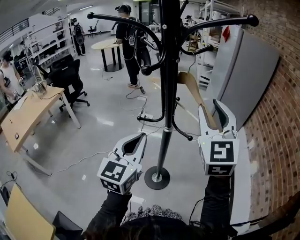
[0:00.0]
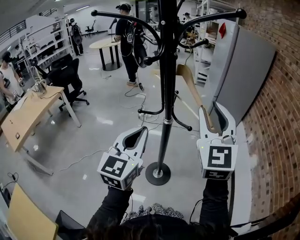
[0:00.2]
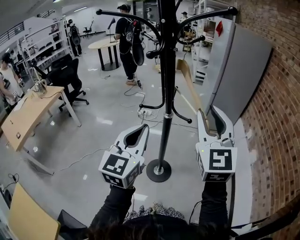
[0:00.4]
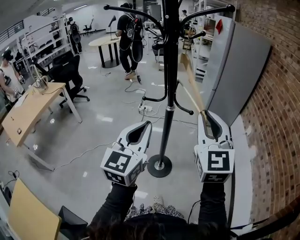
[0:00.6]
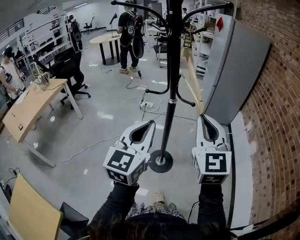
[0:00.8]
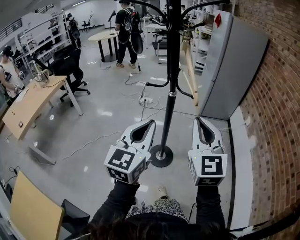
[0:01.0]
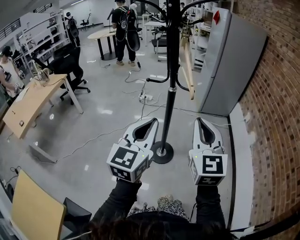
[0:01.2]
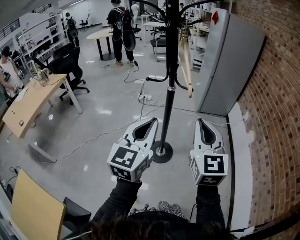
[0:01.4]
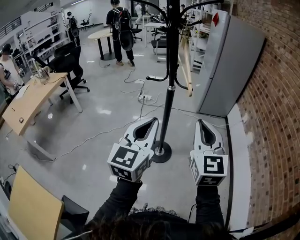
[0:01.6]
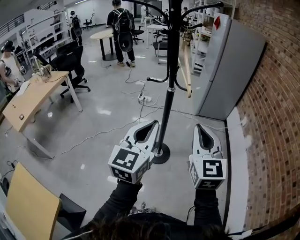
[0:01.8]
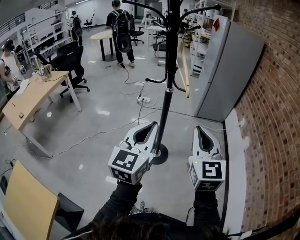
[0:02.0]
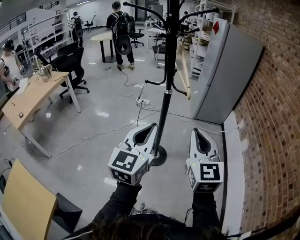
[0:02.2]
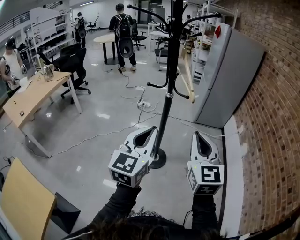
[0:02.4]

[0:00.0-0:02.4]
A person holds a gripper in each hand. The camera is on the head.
0:00.0 to 0:01.2: The right gripper travels backward and downward by about 25 cm, and closes its fingers. Meanwhile the left gripper shifts approximately 15 cm backward.
0:01.2 to 0:02.4: The grippers both shift backward by roughly 5 cm.

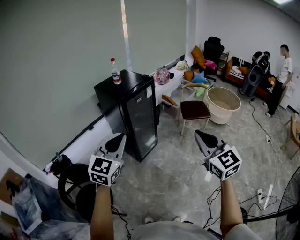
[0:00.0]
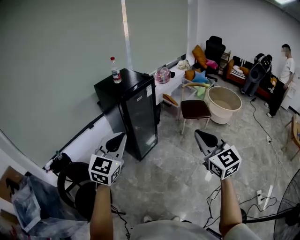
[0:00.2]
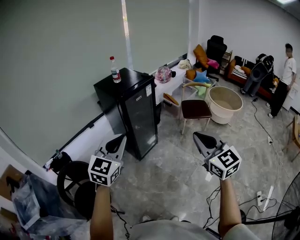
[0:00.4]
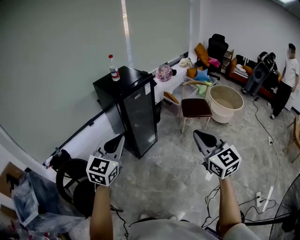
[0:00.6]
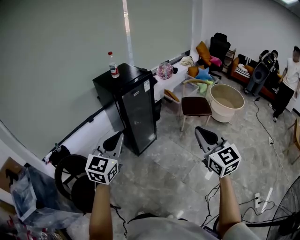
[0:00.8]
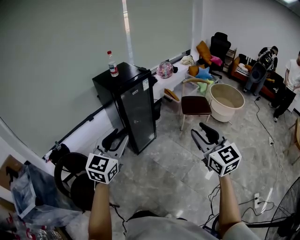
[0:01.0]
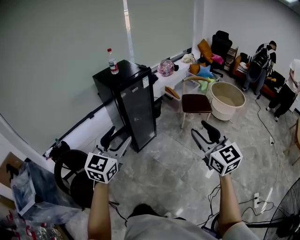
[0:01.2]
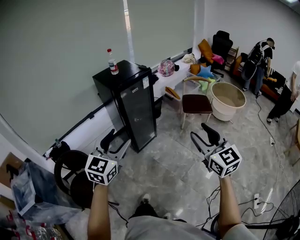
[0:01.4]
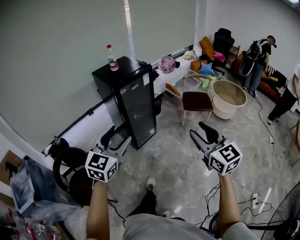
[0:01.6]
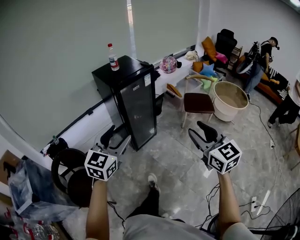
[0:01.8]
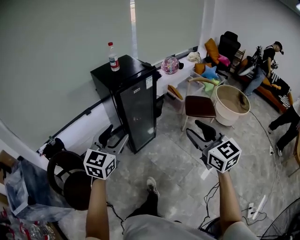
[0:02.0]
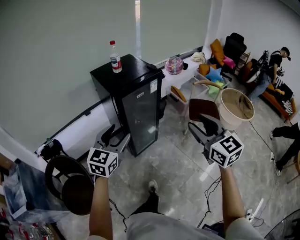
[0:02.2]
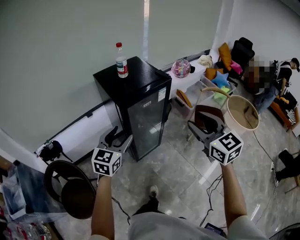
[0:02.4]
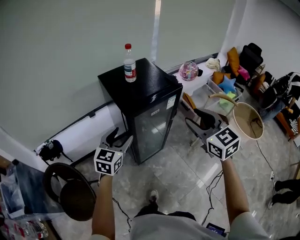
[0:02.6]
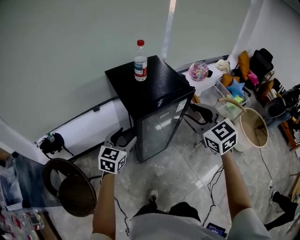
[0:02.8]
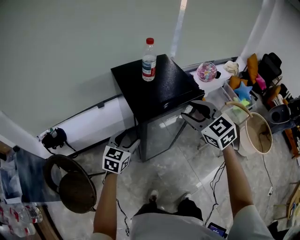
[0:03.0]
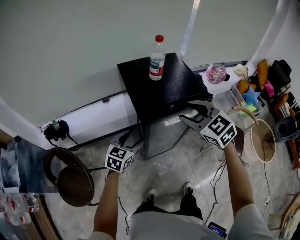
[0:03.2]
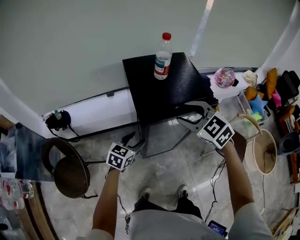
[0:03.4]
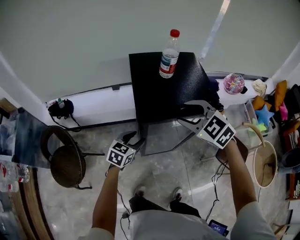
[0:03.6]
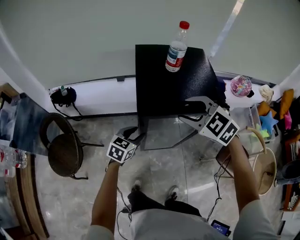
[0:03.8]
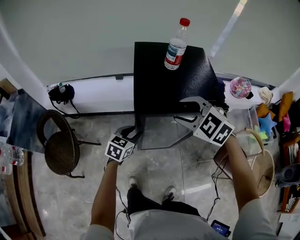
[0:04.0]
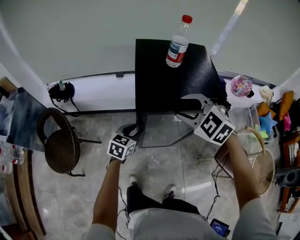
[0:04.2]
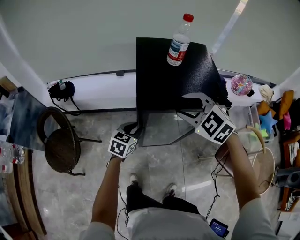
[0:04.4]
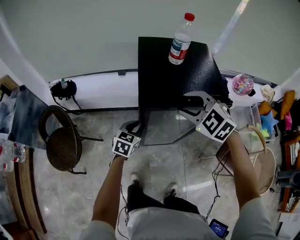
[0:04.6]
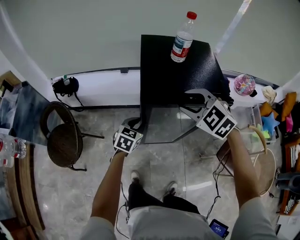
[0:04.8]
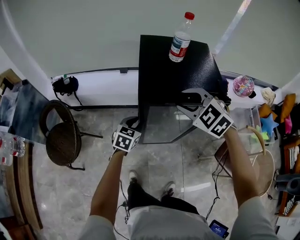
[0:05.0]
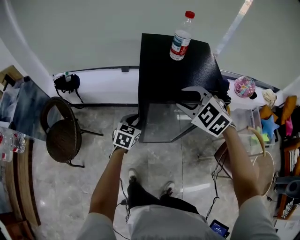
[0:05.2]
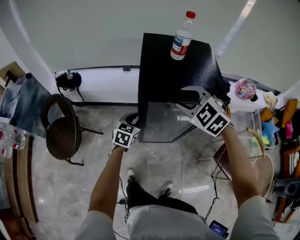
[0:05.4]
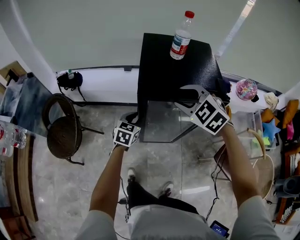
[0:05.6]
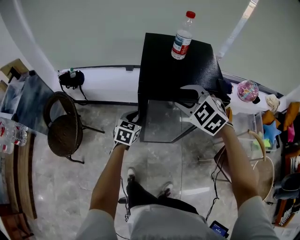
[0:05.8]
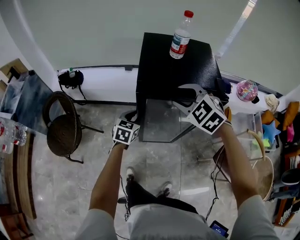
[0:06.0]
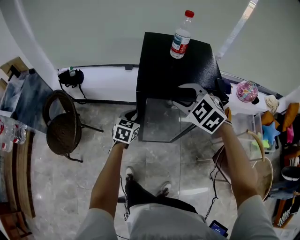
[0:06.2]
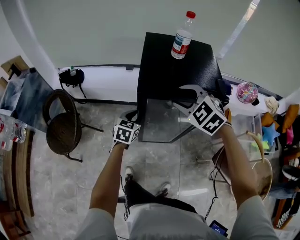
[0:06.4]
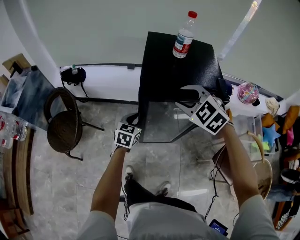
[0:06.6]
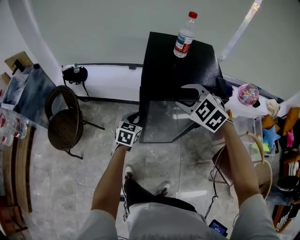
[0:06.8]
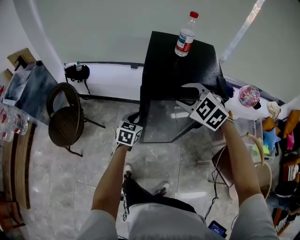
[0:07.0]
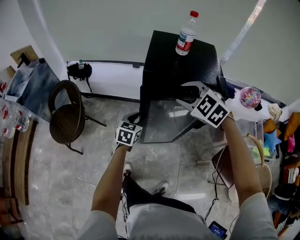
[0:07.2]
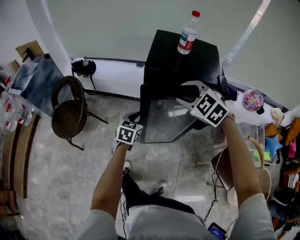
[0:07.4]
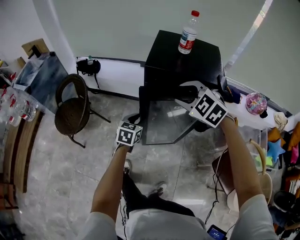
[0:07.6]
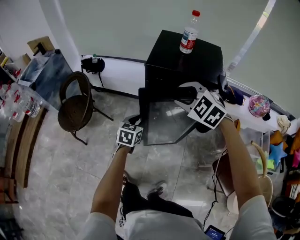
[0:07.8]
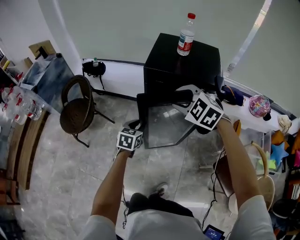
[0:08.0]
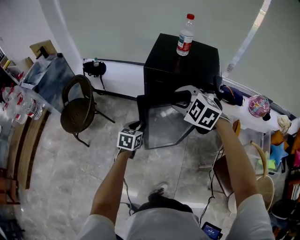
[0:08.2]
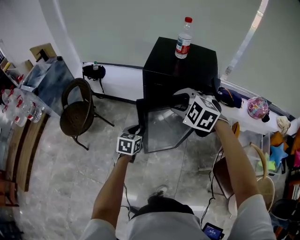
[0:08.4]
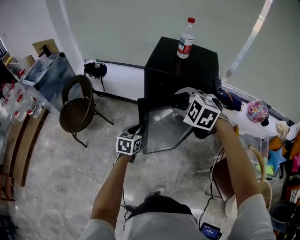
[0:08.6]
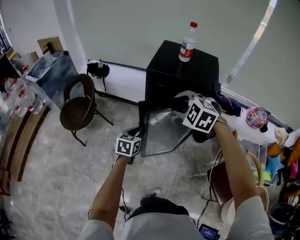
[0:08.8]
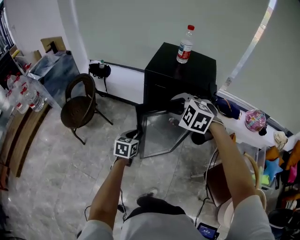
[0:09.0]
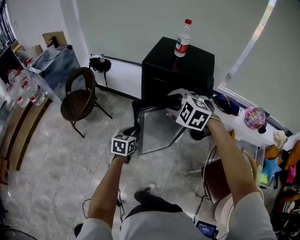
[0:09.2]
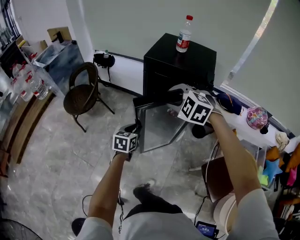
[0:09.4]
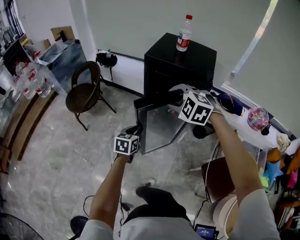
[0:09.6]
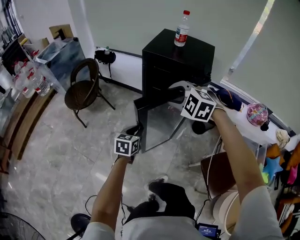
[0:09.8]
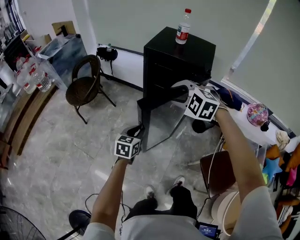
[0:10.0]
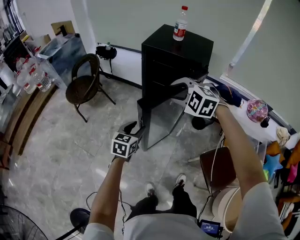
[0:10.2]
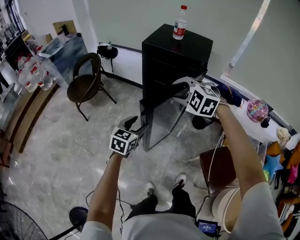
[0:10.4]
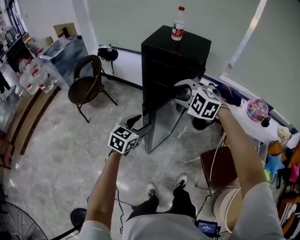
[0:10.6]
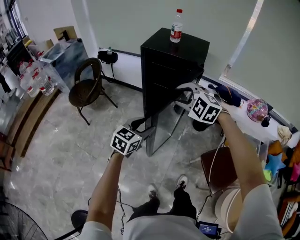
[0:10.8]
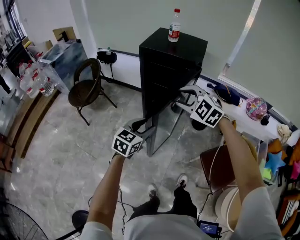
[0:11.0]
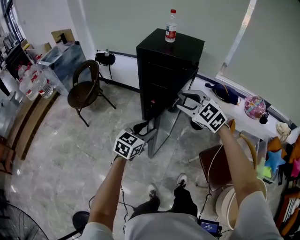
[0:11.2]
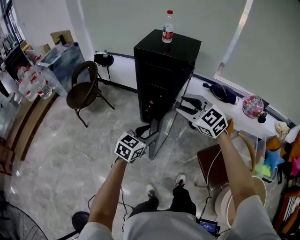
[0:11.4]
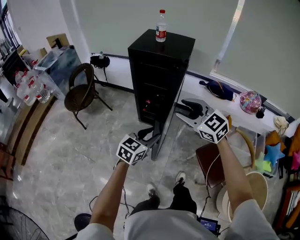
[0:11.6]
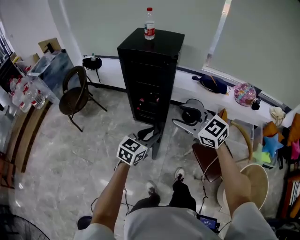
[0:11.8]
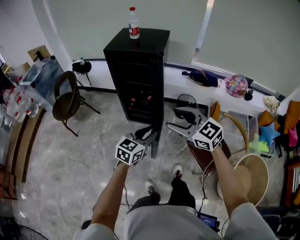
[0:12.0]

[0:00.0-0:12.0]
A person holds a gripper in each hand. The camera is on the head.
0:00.0 to 0:01.6: Both grippers travel together to the right, some 10 cm. The right gripper opens its fingers; the left gripper opens.
0:01.6 to 0:03.0: Both grippers are carried forward, some 50 cm. The left gripper travels downward by approximately 20 cm, and rotates some 30 degrees. The right gripper rotates approximately 40 degrees.
0:03.0 to 0:04.4: The right gripper moves downward and forward, some 10 cm, and swivels roughly 40 degrees. Meanwhile the left gripper moves downward, some 15 cm, rotates some 20 degrees, and closes its fingers.
0:04.4 to 0:06.0: The grippers stay close to where they were, moving slightly.
0:06.0 to 0:07.6: The right gripper heads backward, covering about 5 cm, while the left gripper goes approximately 10 cm backward.
0:07.6 to 0:09.0: Both grippers move backward, approximately 10 cm.
0:09.0 to 0:10.4: Both grippers travel together backward, about 15 cm. The left gripper opens up.
0:10.4 to 0:12.0: The left gripper heads to the right and backward, covering some 20 cm, rotates about 20 degrees, and closes up. Meanwhile the right gripper heads backward and to the right, covering about 25 cm, and rolls clockwise, seen from behind, by roughly 50 degrees.

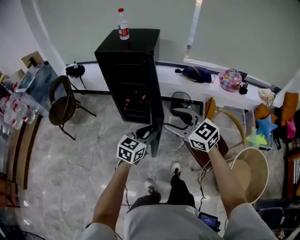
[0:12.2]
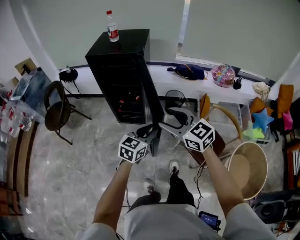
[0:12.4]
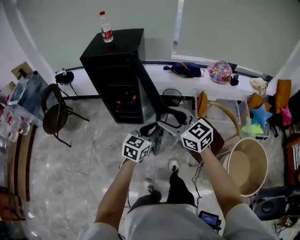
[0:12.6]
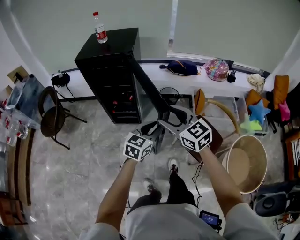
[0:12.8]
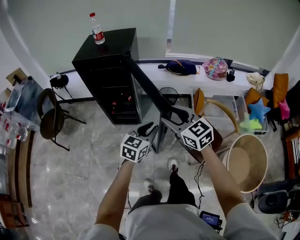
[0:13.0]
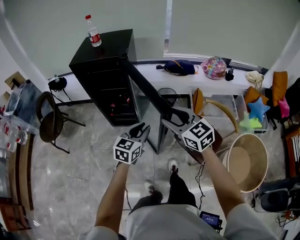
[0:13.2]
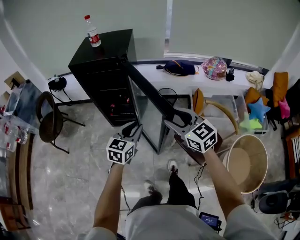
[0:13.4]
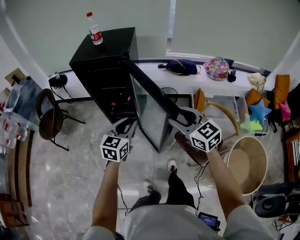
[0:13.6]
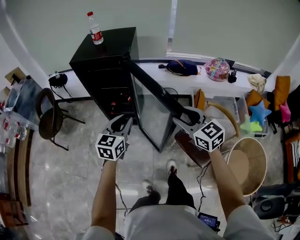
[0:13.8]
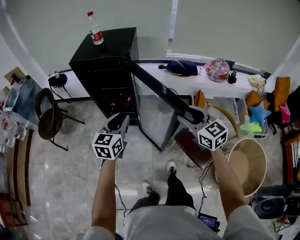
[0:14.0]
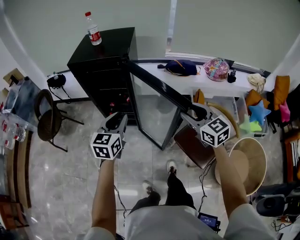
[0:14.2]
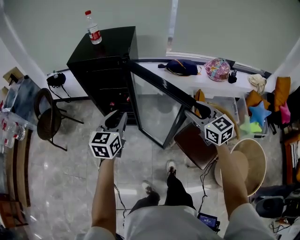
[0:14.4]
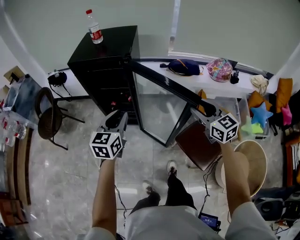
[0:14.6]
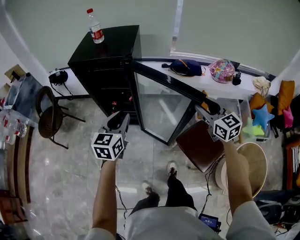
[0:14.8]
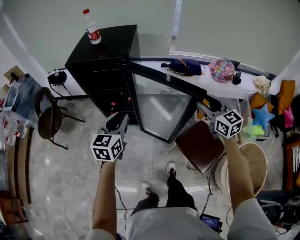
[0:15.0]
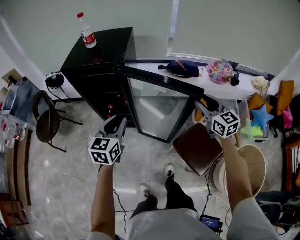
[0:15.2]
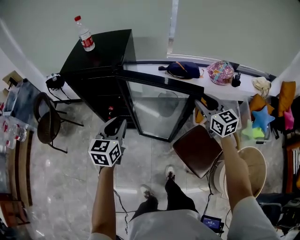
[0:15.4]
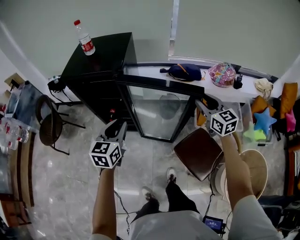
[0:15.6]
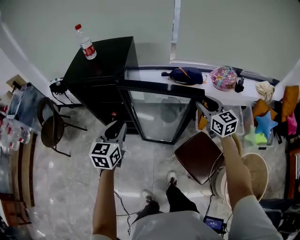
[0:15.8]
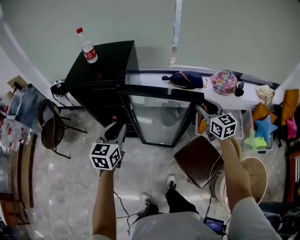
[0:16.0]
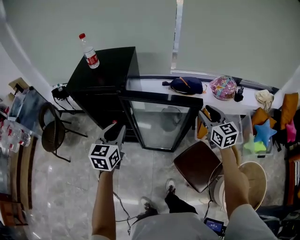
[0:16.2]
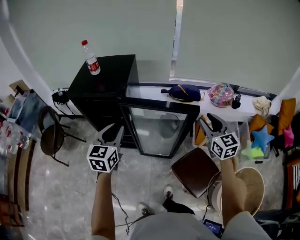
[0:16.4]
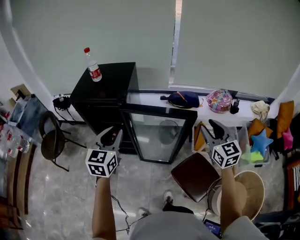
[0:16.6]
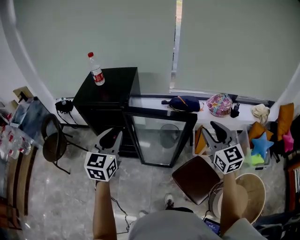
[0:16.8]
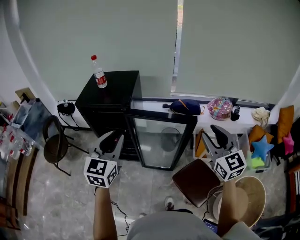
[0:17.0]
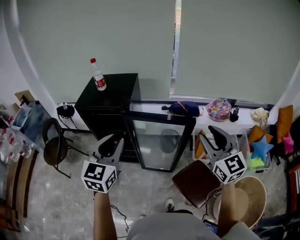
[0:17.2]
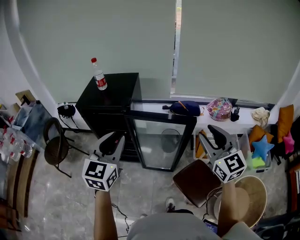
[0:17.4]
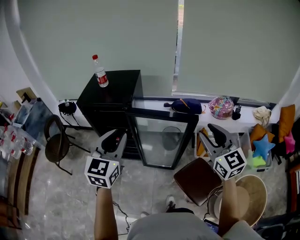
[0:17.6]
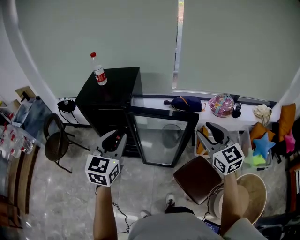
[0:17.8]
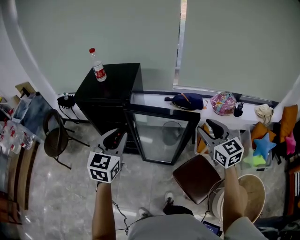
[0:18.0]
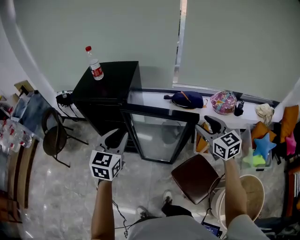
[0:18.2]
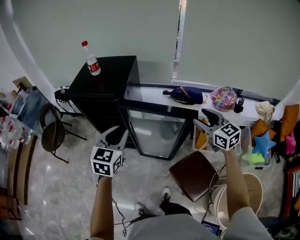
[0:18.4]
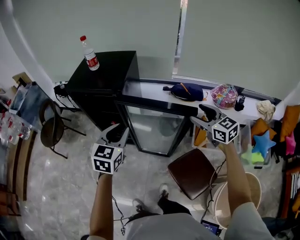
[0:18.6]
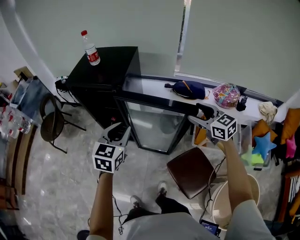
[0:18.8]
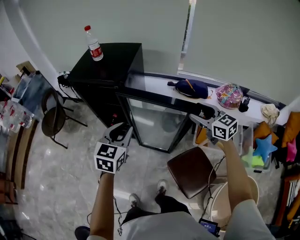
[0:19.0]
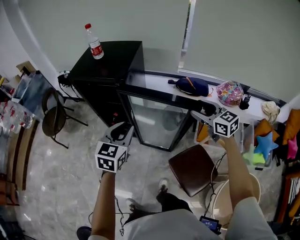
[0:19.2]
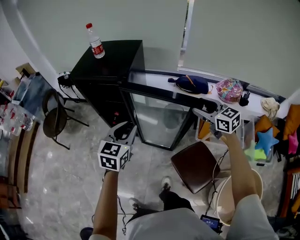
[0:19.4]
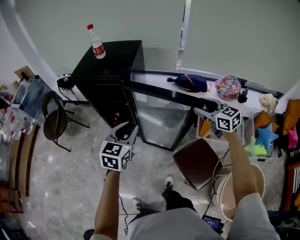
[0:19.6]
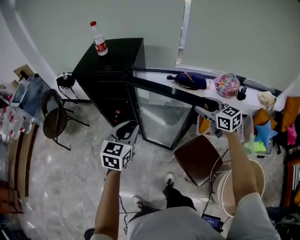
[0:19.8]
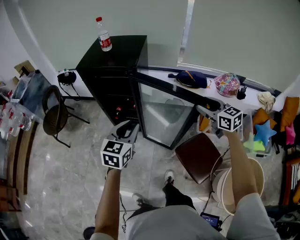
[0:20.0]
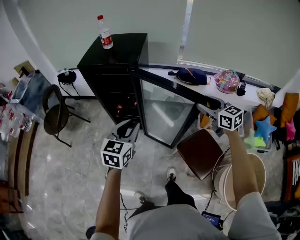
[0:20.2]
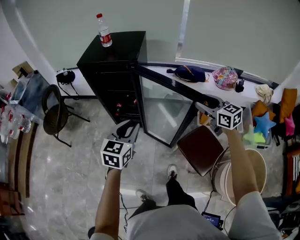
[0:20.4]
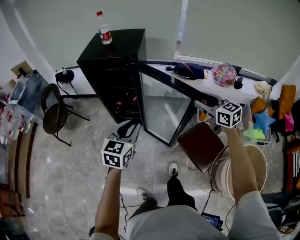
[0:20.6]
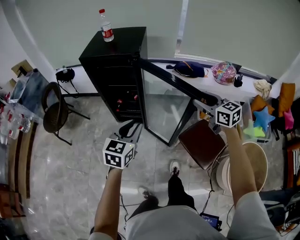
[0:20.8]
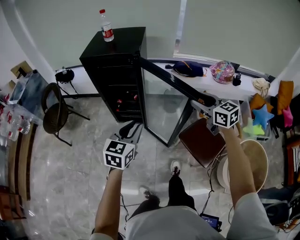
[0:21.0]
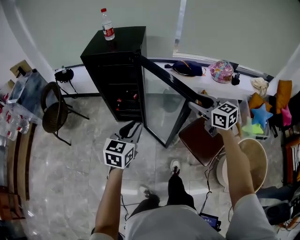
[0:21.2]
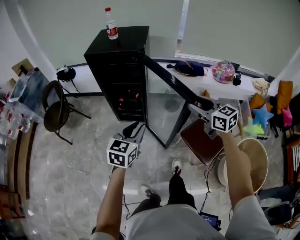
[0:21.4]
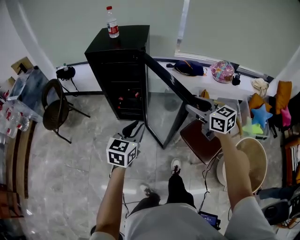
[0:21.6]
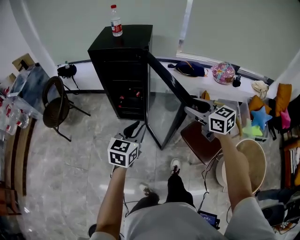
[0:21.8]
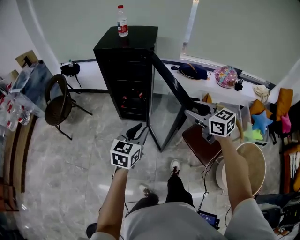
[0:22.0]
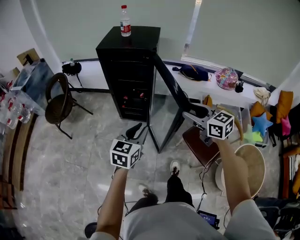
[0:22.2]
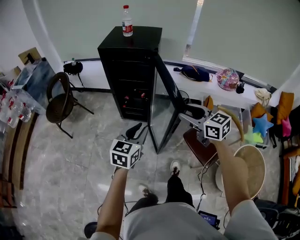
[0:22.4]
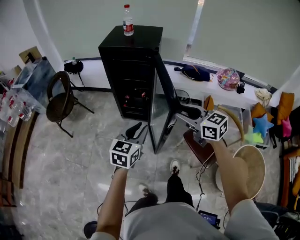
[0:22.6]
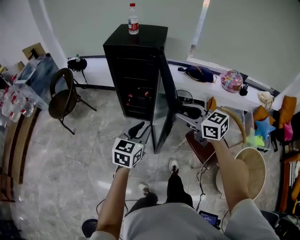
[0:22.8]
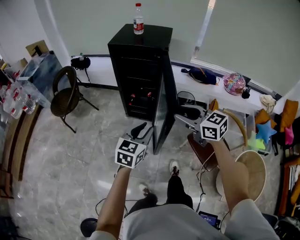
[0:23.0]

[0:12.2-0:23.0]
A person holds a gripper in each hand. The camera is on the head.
0:12.2 to 0:13.8: The left gripper heads forward, covering roughly 10 cm, and goes to the right and returns, approximately 10 cm each way. The right gripper is displaced to the right and forward by approximately 15 cm.
0:13.8 to 0:15.2: The left gripper goes about 5 cm forward. The right gripper is displaced to the right and forward by roughly 20 cm.
0:15.2 to 0:16.8: The two grippers go some 15 cm upward.
0:16.8 to 0:18.4: The right gripper moves forward and downward, about 10 cm, and changes its angle by about 20 degrees, while the left gripper heads downward, covering about 5 cm.
0:18.4 to 0:20.0: The left gripper goes approximately 10 cm backward and downward. The right gripper travels to the left by about 5 cm.
0:20.0 to 0:21.4: The two grippers go approximately 15 cm backward and to the left.
0:21.4 to 0:23.0: The left gripper ends up roughly 5 cm from where it was. The right gripper travels to the left by some 15 cm.
